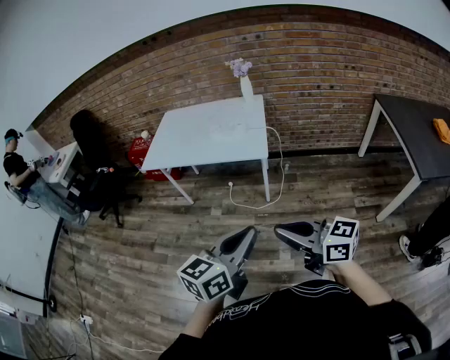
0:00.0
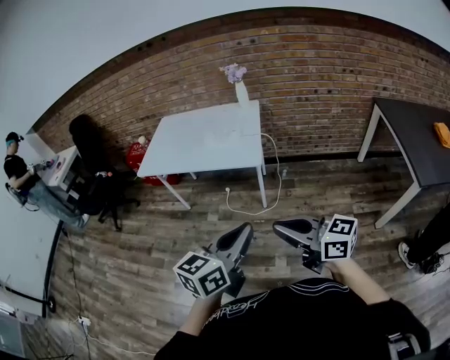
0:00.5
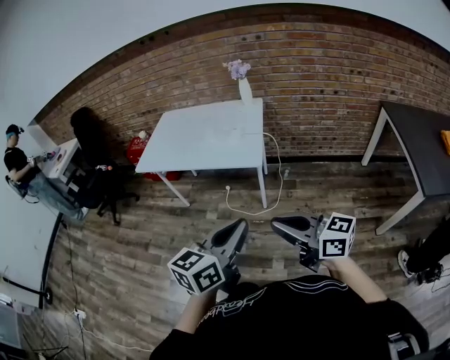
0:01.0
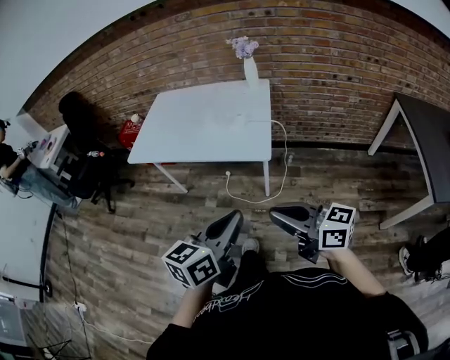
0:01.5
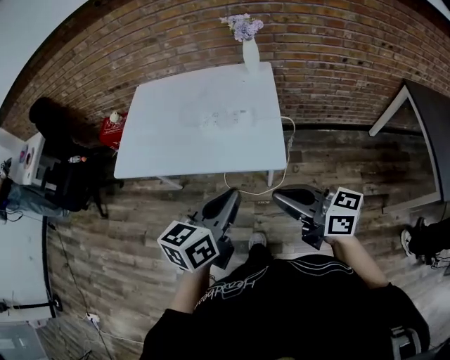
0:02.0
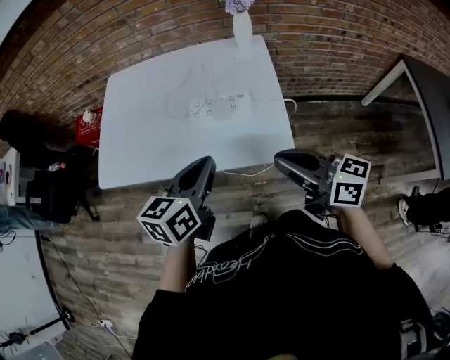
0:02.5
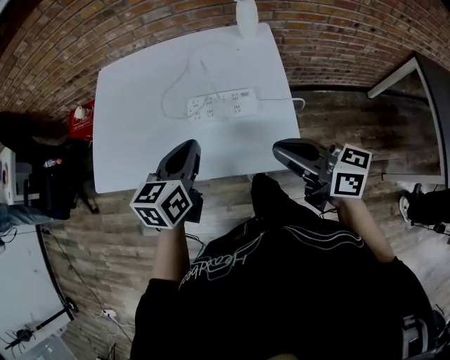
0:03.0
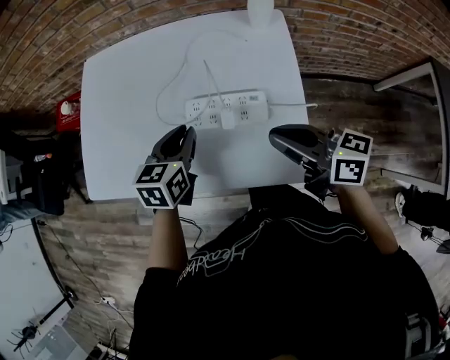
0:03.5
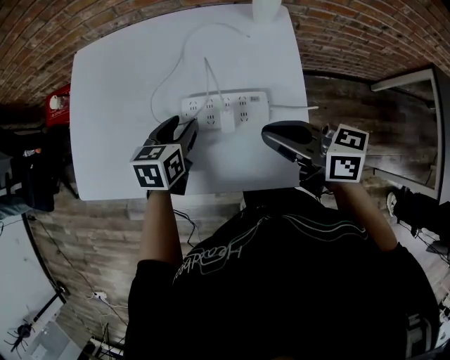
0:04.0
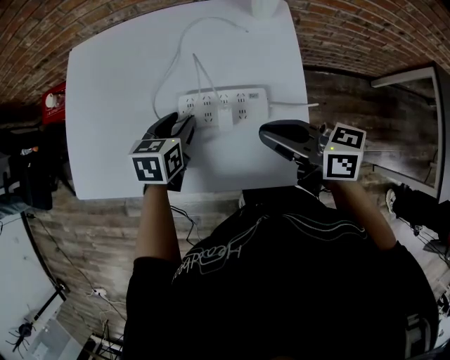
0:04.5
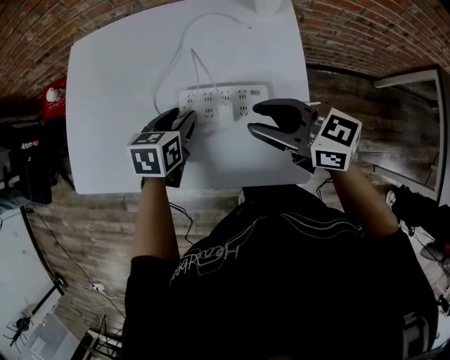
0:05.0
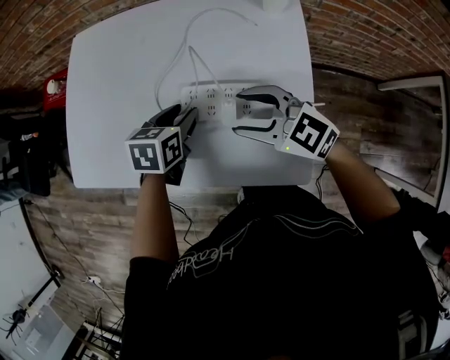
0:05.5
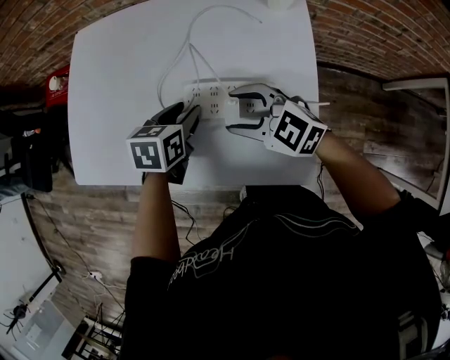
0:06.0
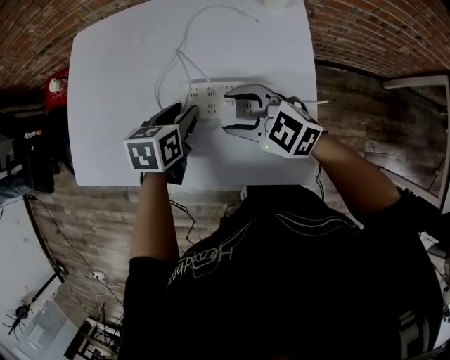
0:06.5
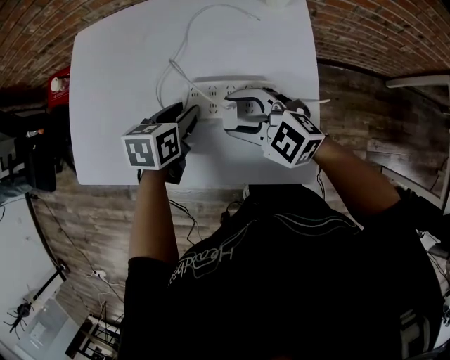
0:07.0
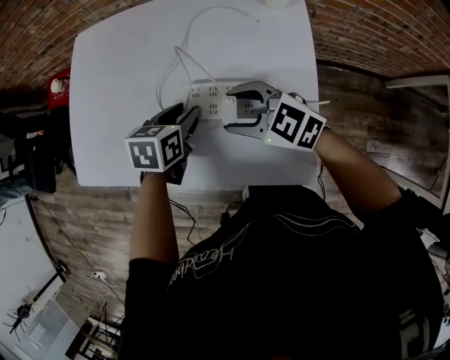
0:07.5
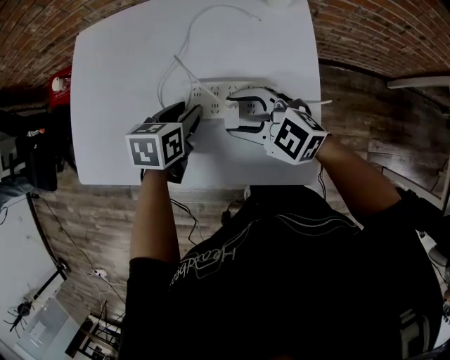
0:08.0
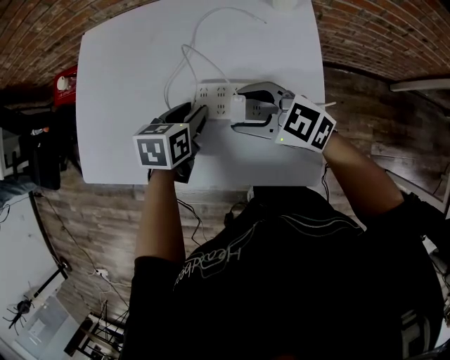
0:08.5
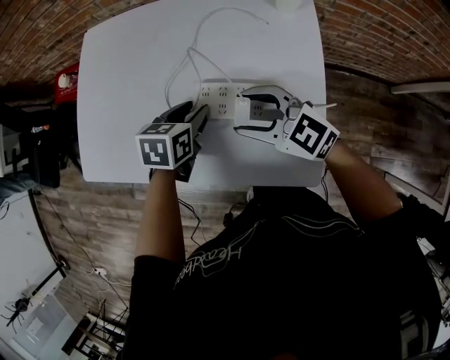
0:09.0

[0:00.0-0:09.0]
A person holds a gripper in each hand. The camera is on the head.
0:00.0 to 0:02.0: The grippers both shift forward by about 40 cm.
0:02.0 to 0:04.5: The left gripper heads forward and downward, covering some 50 cm, changes its angle by roughly 30 degrees, and opens; the right gripper shifts some 35 cm forward.
0:04.5 to 0:07.0: The right gripper moves downward, to the left and forward, approximately 10 cm, rotates around the line of its fingers by about 60 degrees, counterclockwise from behind, and opens.
0:07.0 to 0:09.0: The grippers move only a little.

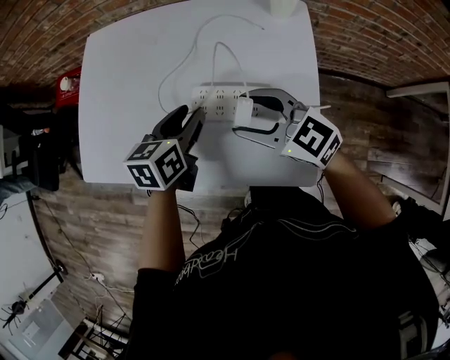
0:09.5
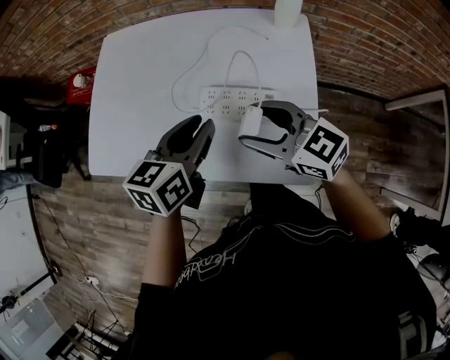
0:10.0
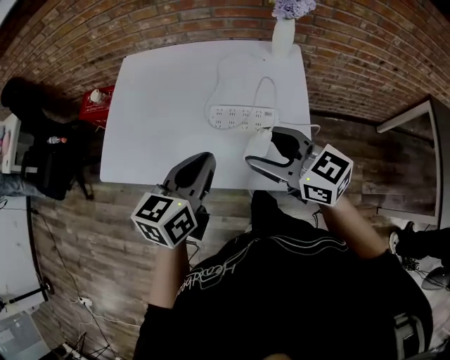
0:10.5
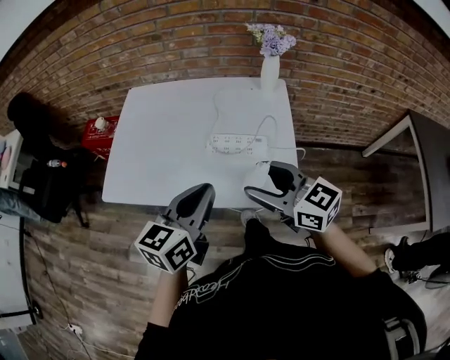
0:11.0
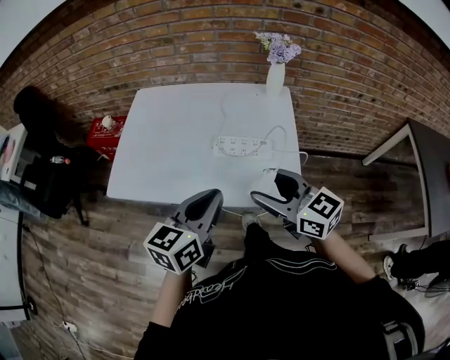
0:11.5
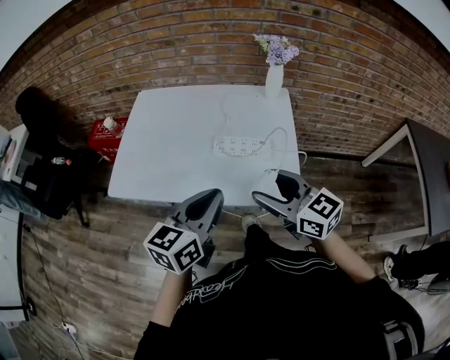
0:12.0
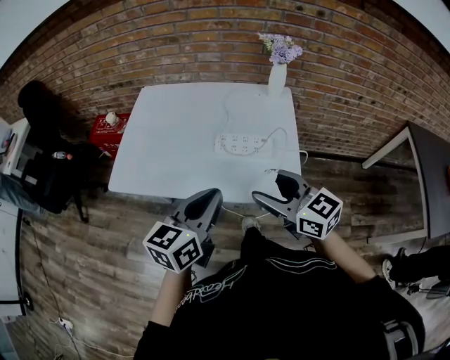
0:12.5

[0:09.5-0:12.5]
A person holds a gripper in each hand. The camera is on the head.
0:09.5 to 0:11.0: The grippers both shift backward and upward by about 25 cm. The left gripper rotates about 20 degrees, and closes up. Meanwhile the right gripper swivels about 20 degrees.
0:11.0 to 0:12.5: The grippers make only small movements.

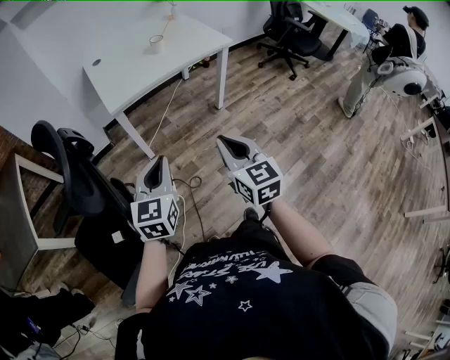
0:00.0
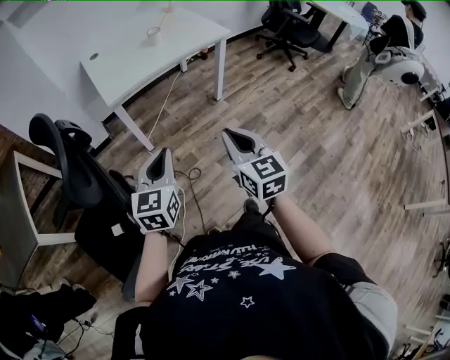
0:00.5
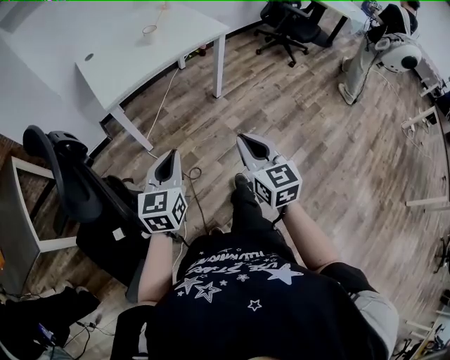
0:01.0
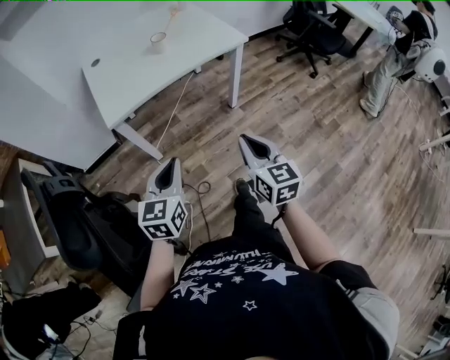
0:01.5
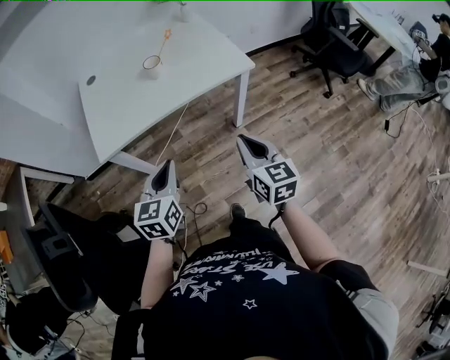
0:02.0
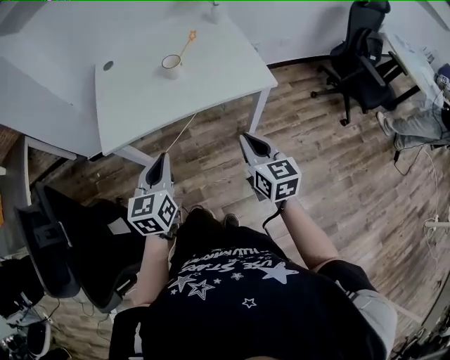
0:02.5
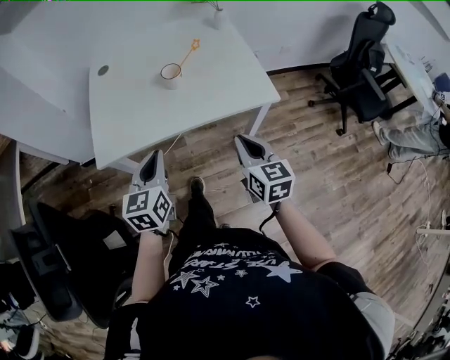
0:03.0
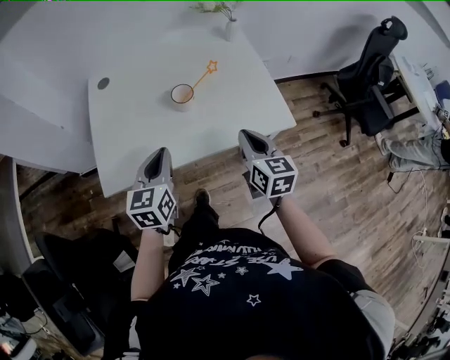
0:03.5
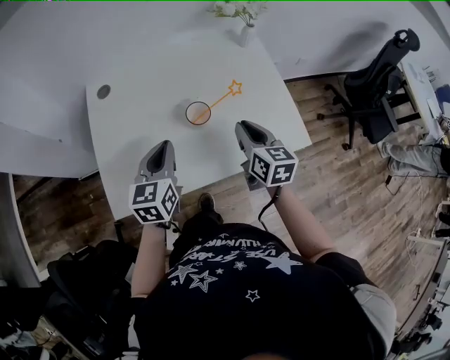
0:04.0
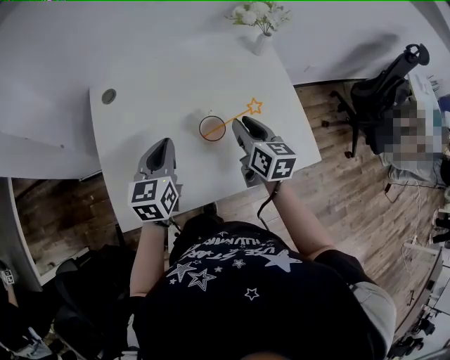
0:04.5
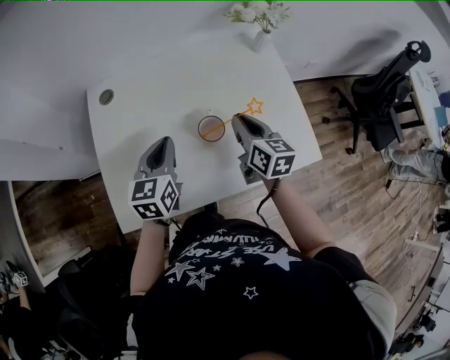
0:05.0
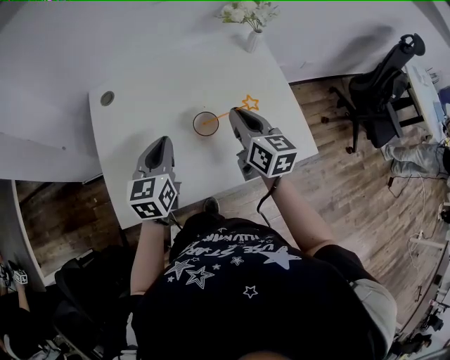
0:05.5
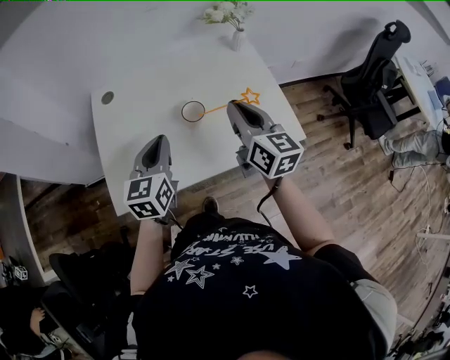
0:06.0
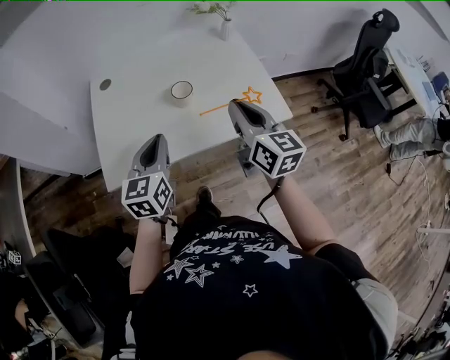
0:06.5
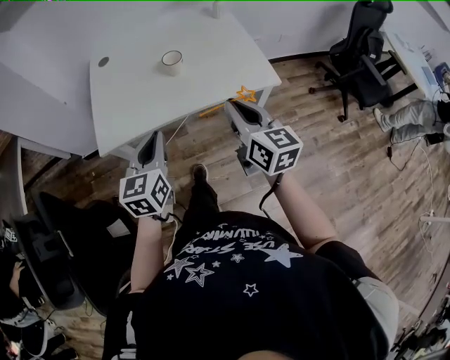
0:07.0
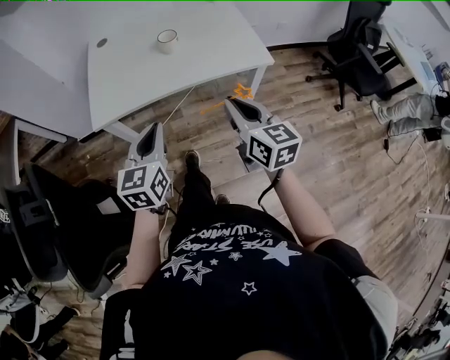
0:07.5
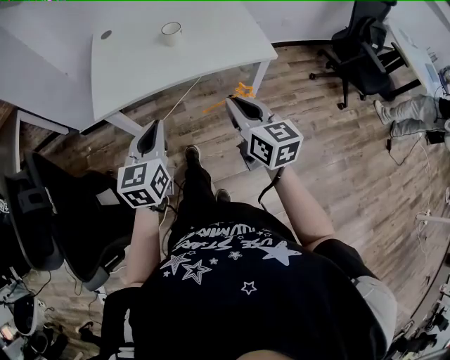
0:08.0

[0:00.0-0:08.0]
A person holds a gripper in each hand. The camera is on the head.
0:00.0 to 0:02.0: Both grippers travel together forward and to the right, roughly 35 cm.
0:02.0 to 0:04.0: Both grippers travel together forward, approximately 40 cm.
0:04.0 to 0:06.0: The left gripper travels forward and back again, approximately 5 cm each way. Meanwhile the right gripper goes about 10 cm upward.
0:06.0 to 0:08.0: Both grippers move backward, some 35 cm.

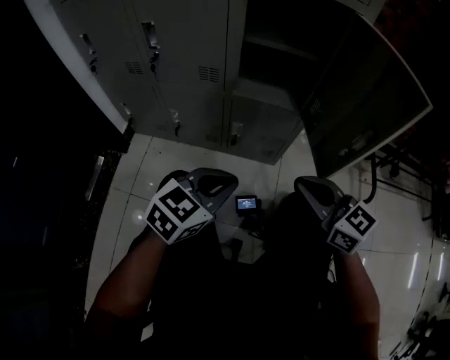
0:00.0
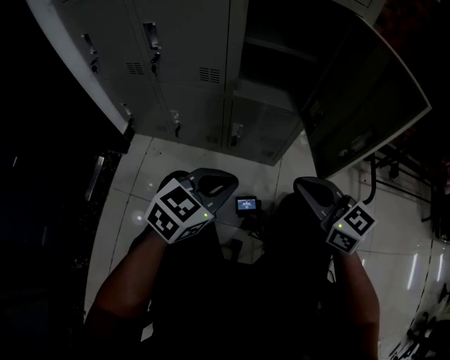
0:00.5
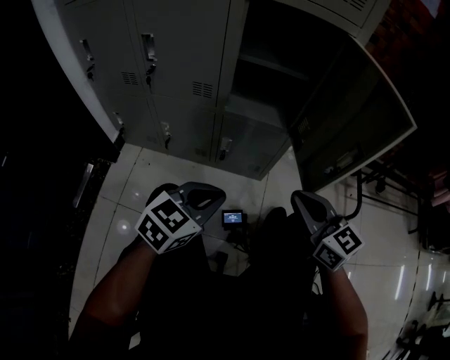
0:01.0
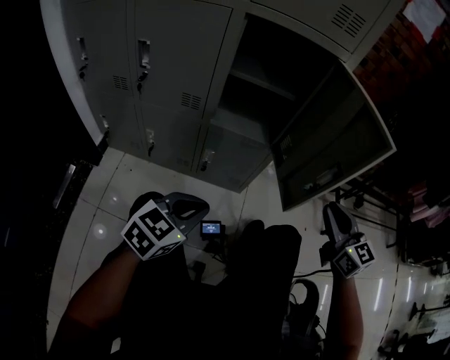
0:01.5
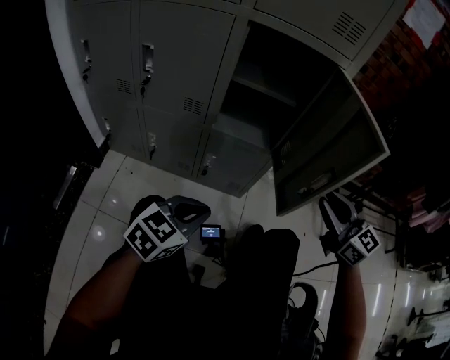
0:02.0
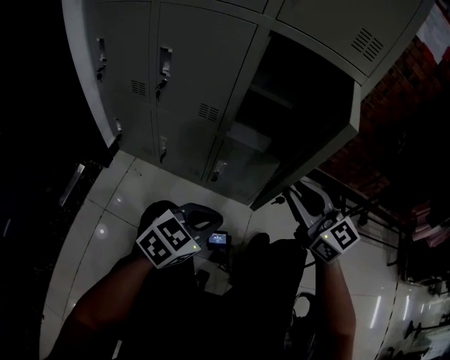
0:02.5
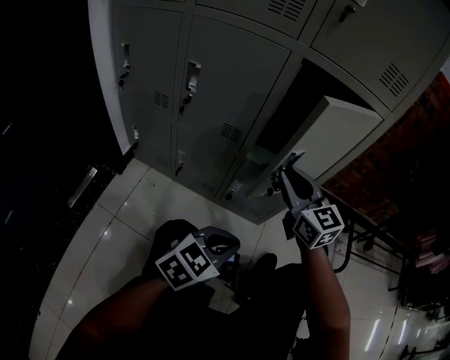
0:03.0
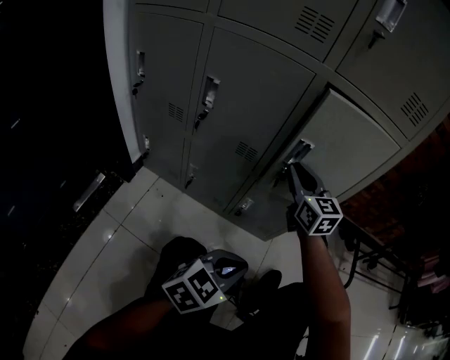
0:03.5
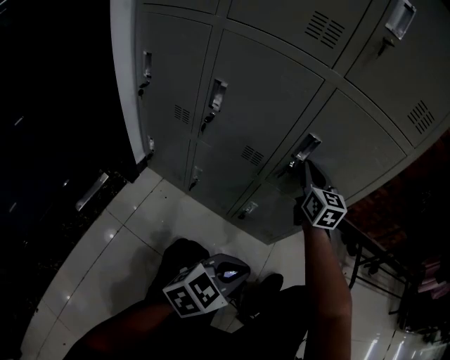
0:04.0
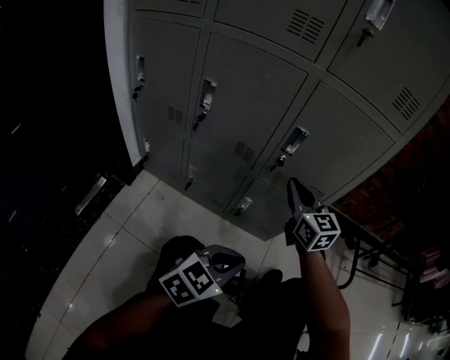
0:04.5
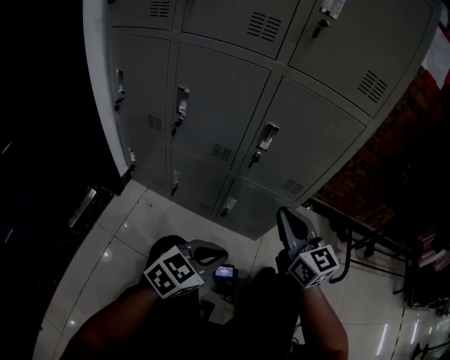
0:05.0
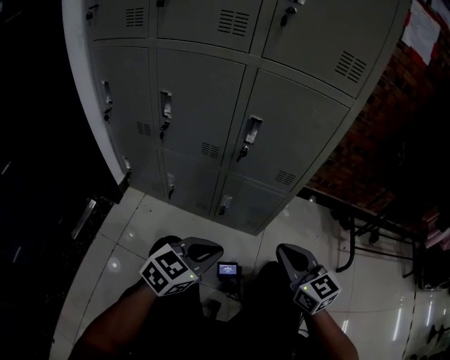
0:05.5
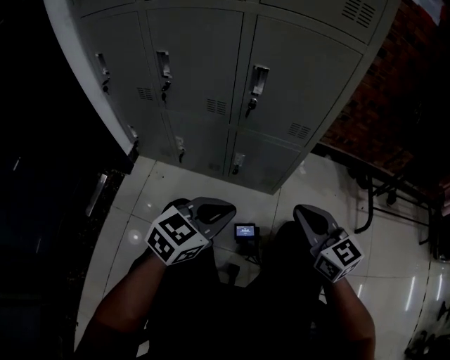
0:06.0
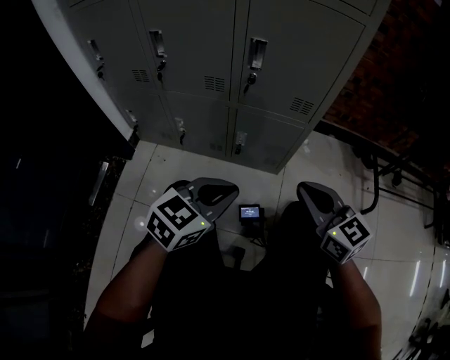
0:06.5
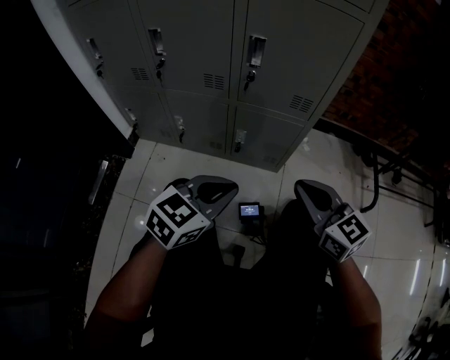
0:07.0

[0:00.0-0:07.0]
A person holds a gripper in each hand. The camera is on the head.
0:00.0 to 0:02.0: The right gripper moves to the right, upward and forward, roughly 15 cm, and opens its fingers.
0:02.0 to 0:03.5: The right gripper heads to the left and forward, covering approximately 30 cm.
0:03.5 to 0:05.0: The right gripper heads backward and to the right, covering about 15 cm.
0:05.0 to 0:07.0: The right gripper heads backward, downward and to the right, covering roughly 15 cm.
